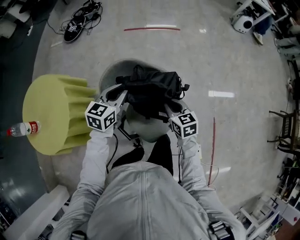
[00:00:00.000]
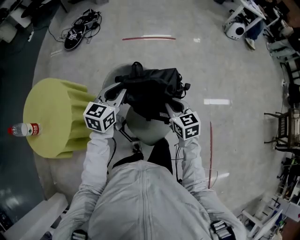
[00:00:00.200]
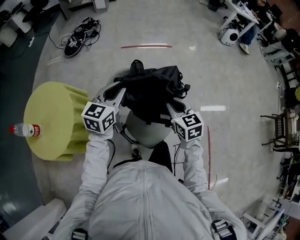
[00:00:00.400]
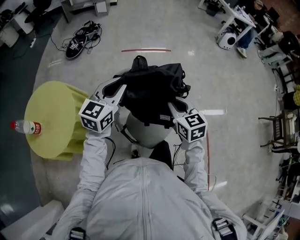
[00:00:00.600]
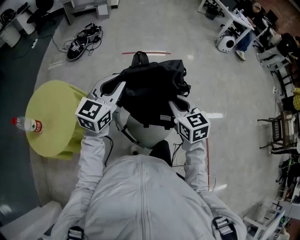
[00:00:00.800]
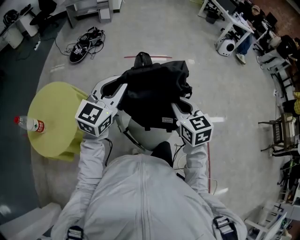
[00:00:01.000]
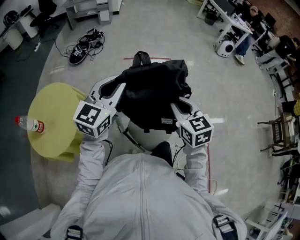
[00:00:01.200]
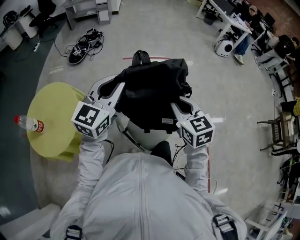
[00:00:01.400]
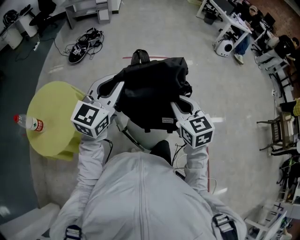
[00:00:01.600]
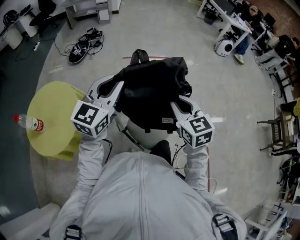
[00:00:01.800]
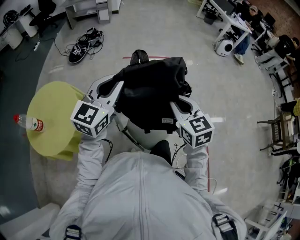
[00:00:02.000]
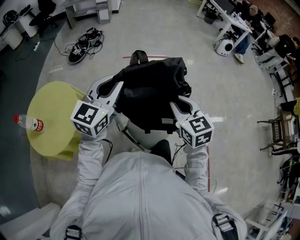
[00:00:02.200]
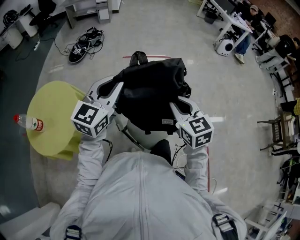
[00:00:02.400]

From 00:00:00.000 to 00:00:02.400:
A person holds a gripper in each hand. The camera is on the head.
From 00:00:00.000 to 00:00:01.200: The two grippers go some 25 cm upward. The left gripper turns by roughly 30 degrees.
From 00:00:01.200 to 00:00:02.400: The grippers move only a little.

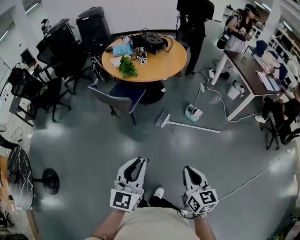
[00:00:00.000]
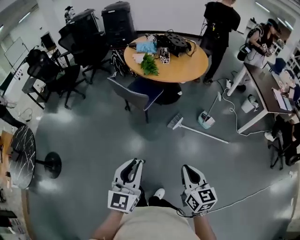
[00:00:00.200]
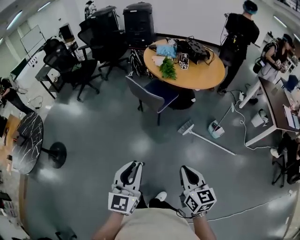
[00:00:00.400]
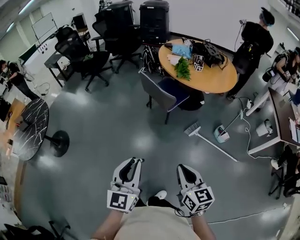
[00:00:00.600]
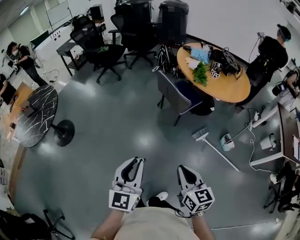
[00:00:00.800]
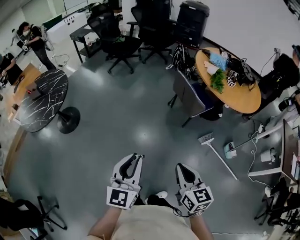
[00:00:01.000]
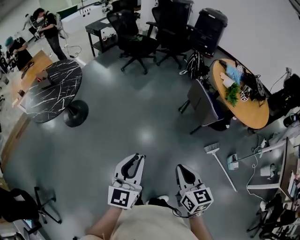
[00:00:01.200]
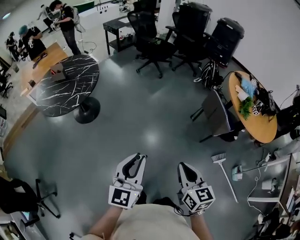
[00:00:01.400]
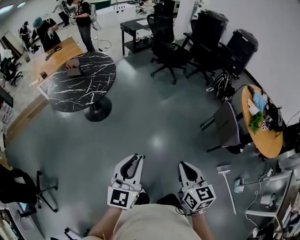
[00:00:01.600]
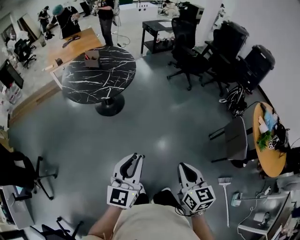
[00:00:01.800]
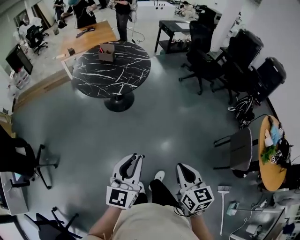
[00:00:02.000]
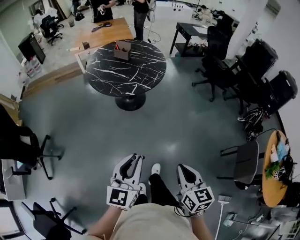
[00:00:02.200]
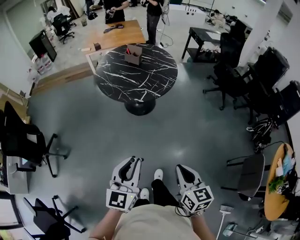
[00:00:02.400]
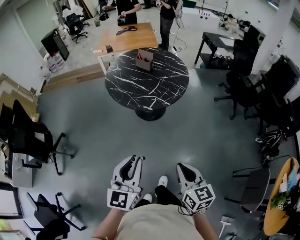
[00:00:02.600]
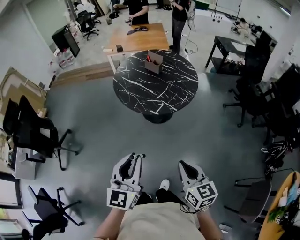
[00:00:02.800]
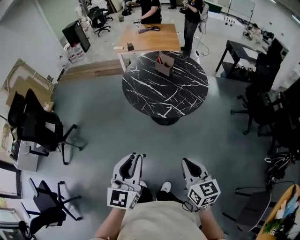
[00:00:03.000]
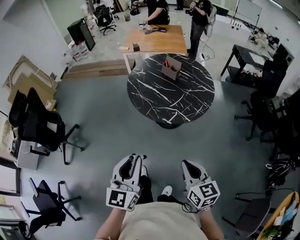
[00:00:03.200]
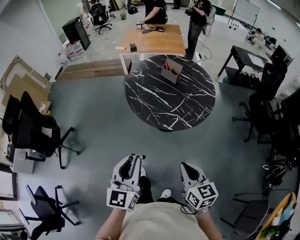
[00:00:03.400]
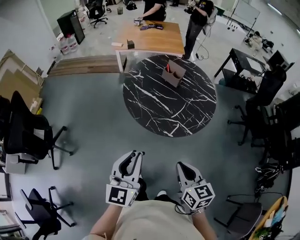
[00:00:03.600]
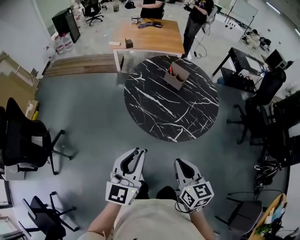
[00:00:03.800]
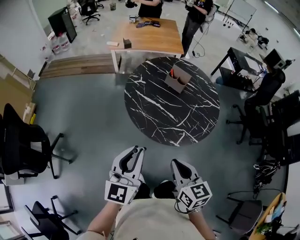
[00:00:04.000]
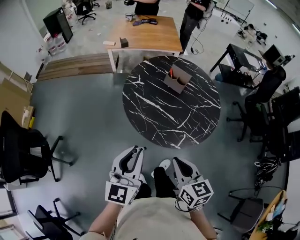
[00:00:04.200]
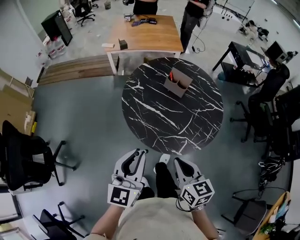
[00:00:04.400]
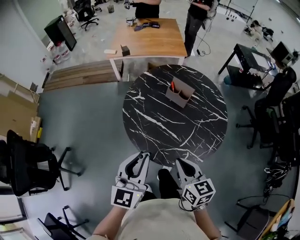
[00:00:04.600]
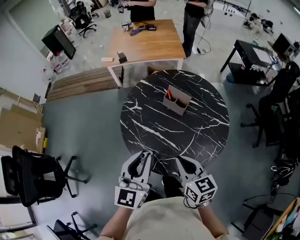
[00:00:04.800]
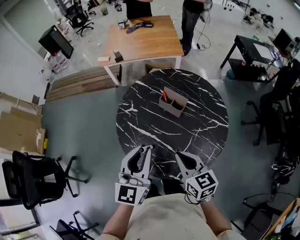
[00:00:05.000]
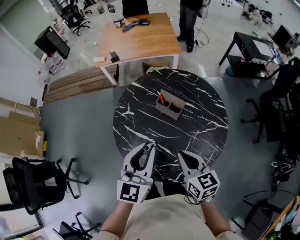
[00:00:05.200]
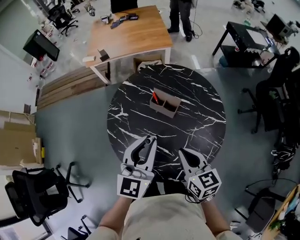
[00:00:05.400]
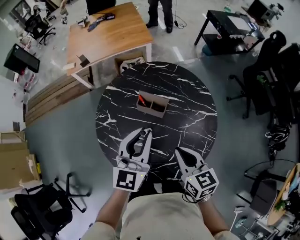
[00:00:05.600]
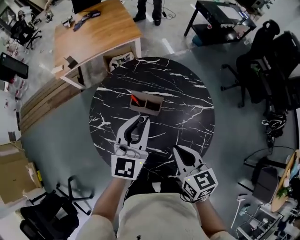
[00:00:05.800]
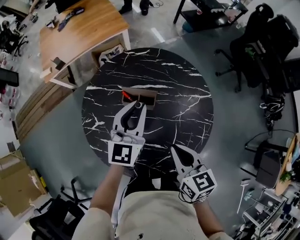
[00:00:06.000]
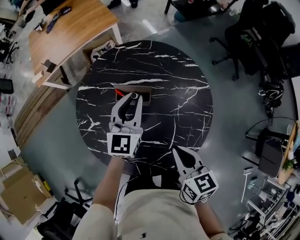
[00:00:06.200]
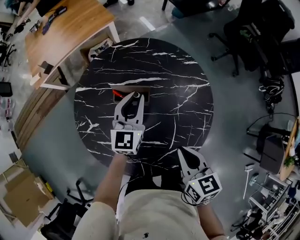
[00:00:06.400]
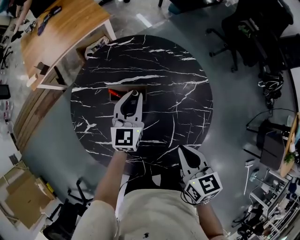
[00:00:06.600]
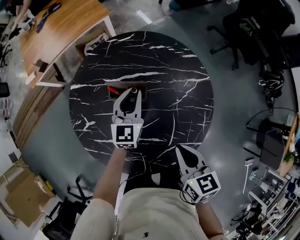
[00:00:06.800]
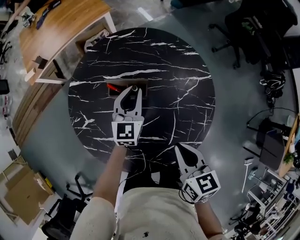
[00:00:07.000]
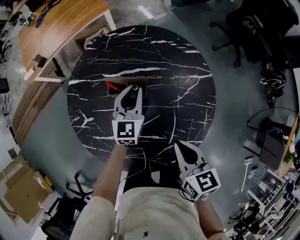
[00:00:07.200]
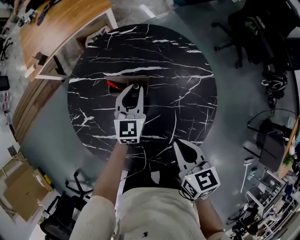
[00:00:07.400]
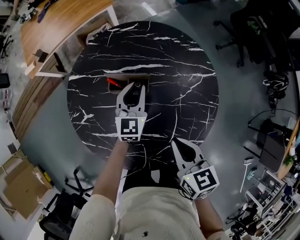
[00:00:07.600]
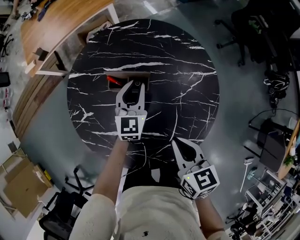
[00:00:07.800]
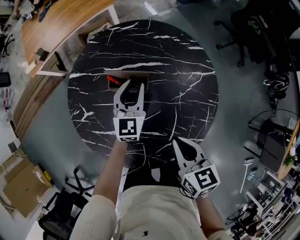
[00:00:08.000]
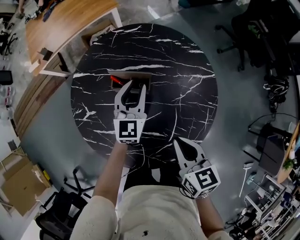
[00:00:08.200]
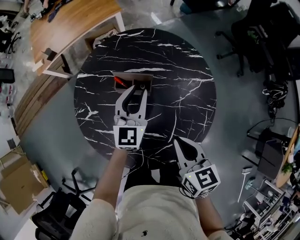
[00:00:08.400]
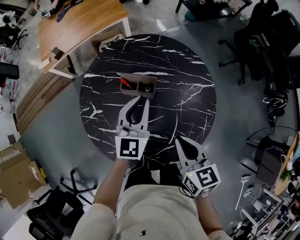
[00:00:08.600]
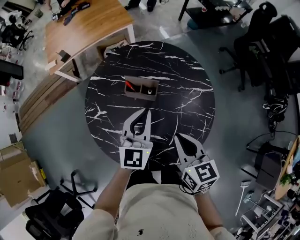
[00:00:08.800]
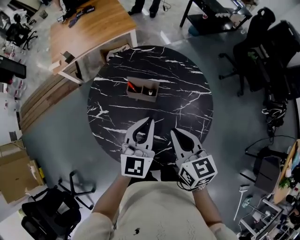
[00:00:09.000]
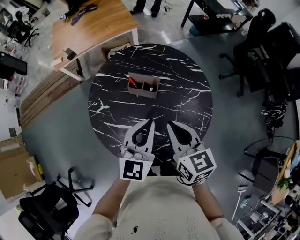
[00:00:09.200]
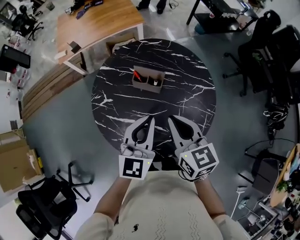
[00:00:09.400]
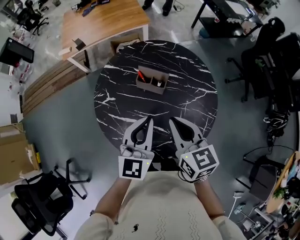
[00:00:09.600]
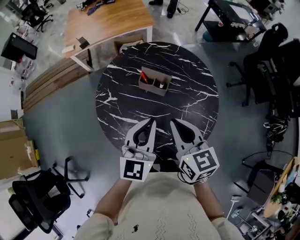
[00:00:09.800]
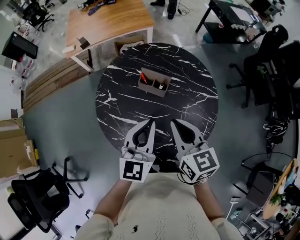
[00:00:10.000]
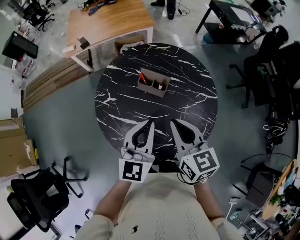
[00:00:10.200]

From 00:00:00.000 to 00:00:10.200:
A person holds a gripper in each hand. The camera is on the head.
From 00:00:00.000 to 00:00:01.400: The two grippers travel together, about 50 cm. The left gripper turns by roughly 50 degrees. Meanwhile the right gripper changes its angle by some 50 degrees.
From 00:00:01.400 to 00:00:03.000: The pair of grippers is taken about 50 cm. The right gripper turns by some 50 degrees; the left gripper swivels roughly 50 degrees.
From 00:00:03.000 to 00:00:04.400: The right gripper is displaced forward and to the left by approximately 40 cm, while the left gripper is displaced forward by some 40 cm.
From 00:00:04.400 to 00:00:05.800: The two grippers go some 40 cm forward and to the right. The left gripper rotates approximately 20 degrees.
From 00:00:05.800 to 00:00:07.200: The right gripper moves downward, roughly 10 cm, while the left gripper goes approximately 20 cm downward and forward.
From 00:00:07.200 to 00:00:08.800: The left gripper goes about 20 cm upward and backward. Meanwhile the right gripper travels upward by roughly 5 cm.
From 00:00:08.800 to 00:00:10.200: The right gripper heads upward, covering some 5 cm. The left gripper moves backward and upward, some 10 cm.

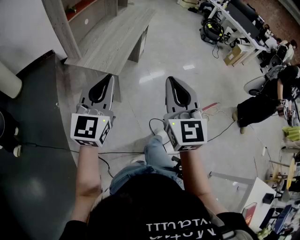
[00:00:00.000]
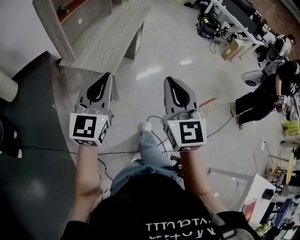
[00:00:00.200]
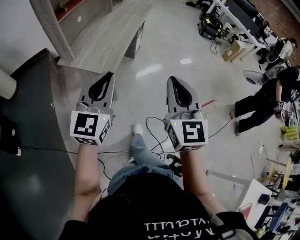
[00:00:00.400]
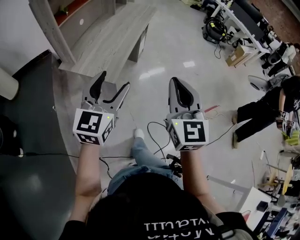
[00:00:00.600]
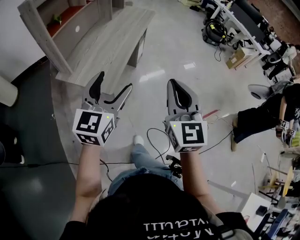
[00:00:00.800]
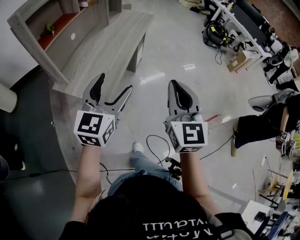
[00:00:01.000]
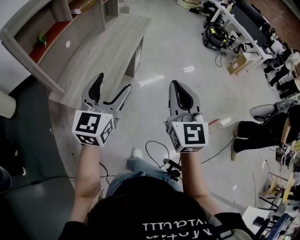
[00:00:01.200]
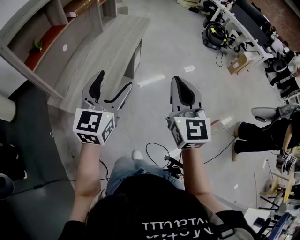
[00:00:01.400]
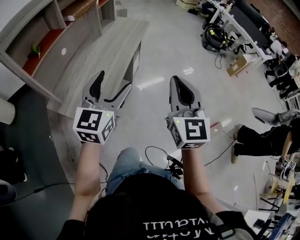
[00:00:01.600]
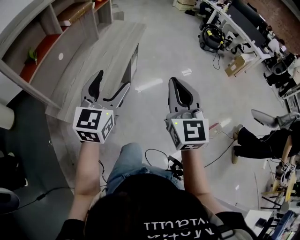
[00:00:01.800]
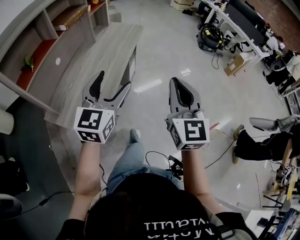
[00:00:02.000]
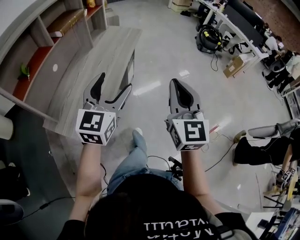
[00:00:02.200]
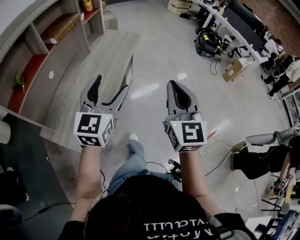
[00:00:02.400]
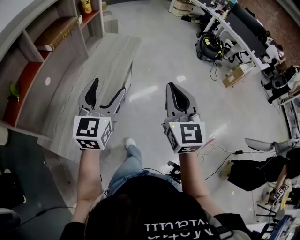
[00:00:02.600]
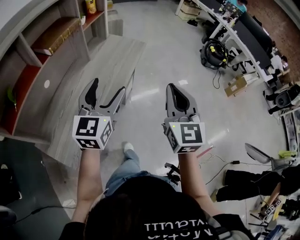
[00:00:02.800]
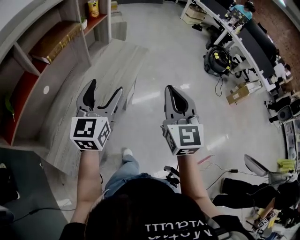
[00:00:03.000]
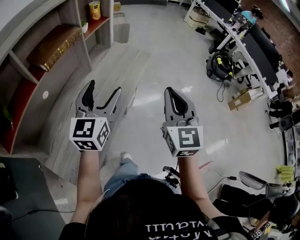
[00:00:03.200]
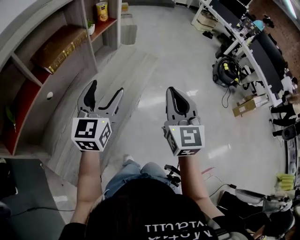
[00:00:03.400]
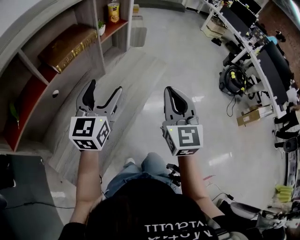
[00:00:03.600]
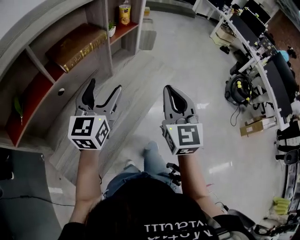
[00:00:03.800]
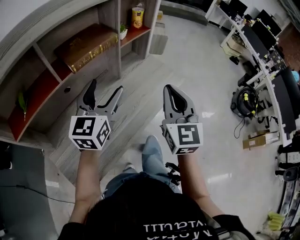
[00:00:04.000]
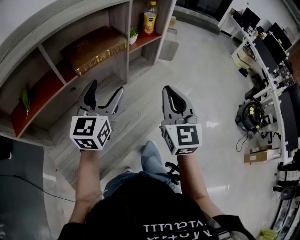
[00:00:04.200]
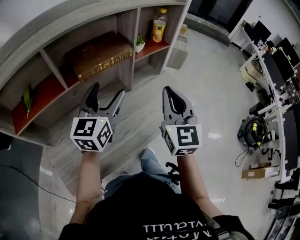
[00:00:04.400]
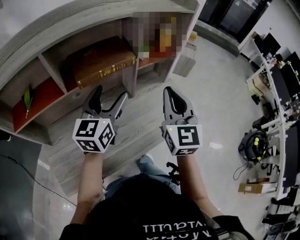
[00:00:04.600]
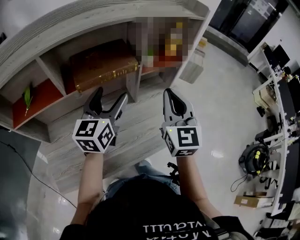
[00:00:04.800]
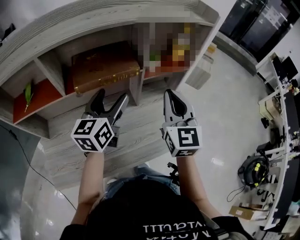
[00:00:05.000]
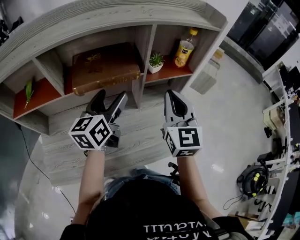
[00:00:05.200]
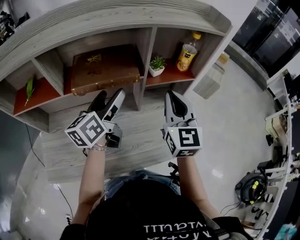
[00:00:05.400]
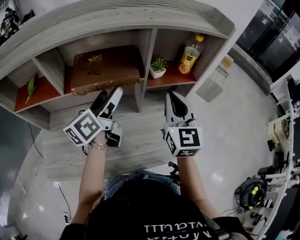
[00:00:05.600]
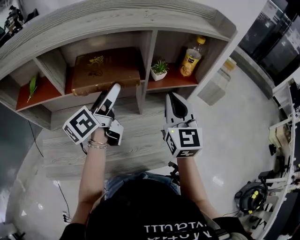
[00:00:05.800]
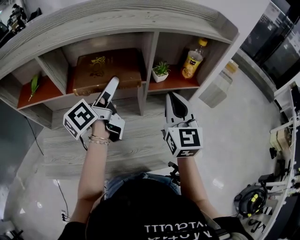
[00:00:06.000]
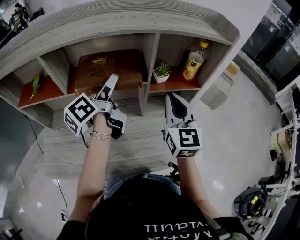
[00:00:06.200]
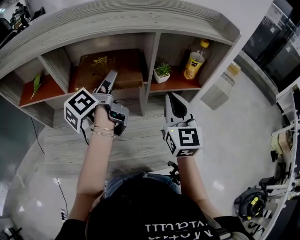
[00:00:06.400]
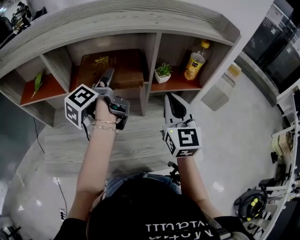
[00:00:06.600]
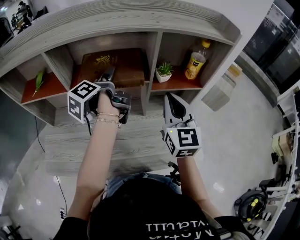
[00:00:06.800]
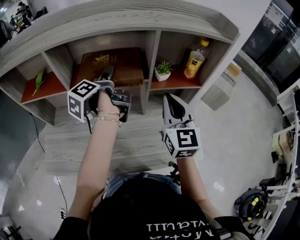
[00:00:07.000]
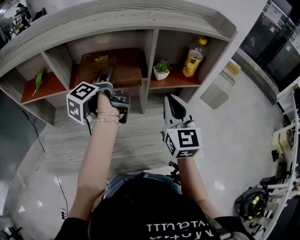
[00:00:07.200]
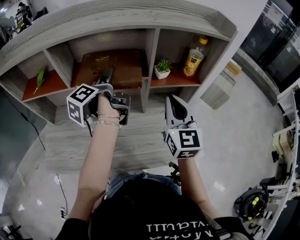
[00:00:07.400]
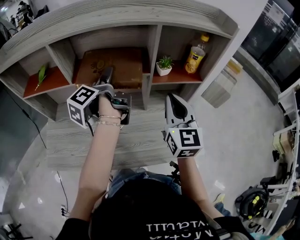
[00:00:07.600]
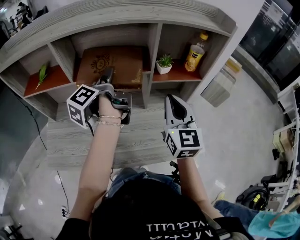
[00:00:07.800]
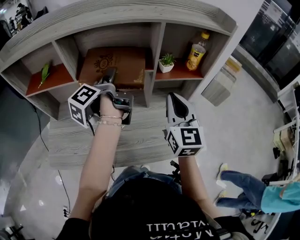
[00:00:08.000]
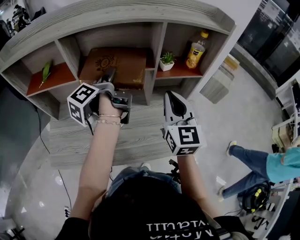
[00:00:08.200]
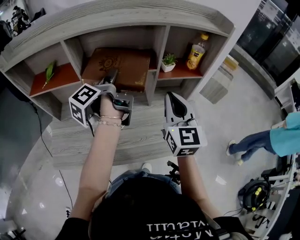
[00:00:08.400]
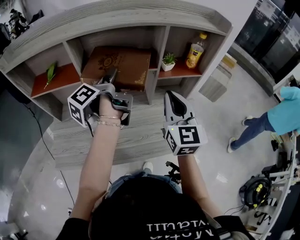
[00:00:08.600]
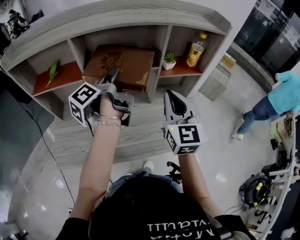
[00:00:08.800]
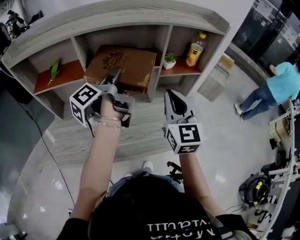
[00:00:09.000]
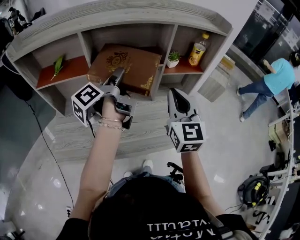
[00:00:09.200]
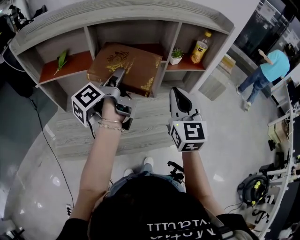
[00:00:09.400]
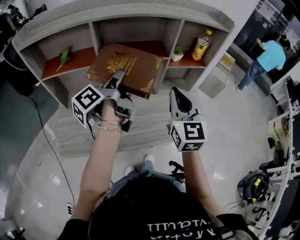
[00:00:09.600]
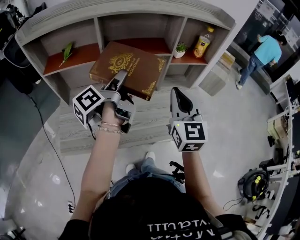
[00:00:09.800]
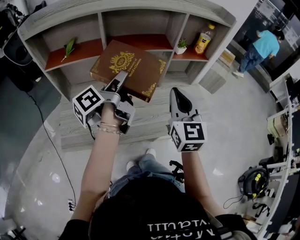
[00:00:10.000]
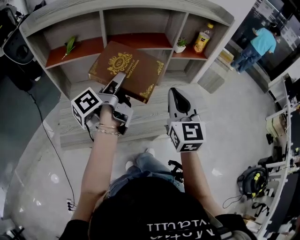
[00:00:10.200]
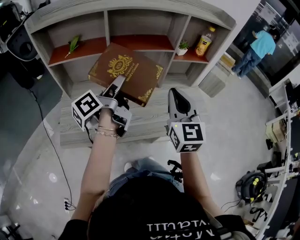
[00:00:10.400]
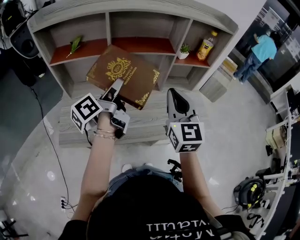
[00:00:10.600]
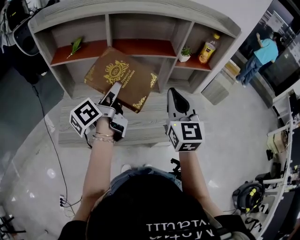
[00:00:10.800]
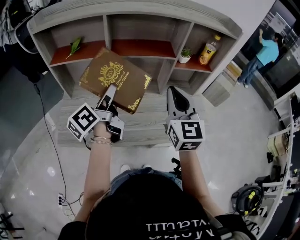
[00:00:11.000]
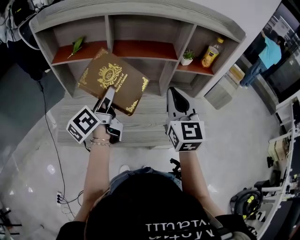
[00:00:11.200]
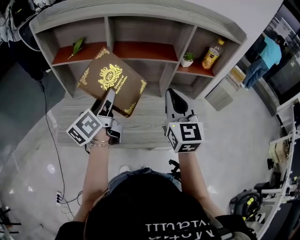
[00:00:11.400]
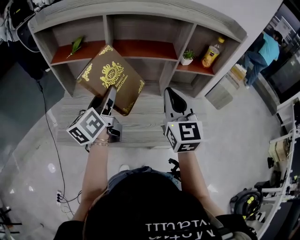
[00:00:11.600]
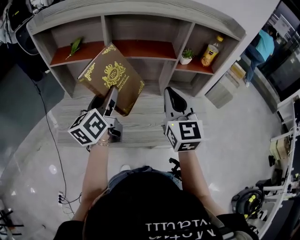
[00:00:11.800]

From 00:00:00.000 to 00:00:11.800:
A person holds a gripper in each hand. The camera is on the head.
From 00:00:00.000 to 00:00:01.400: Both grippers move forward, about 35 cm. The left gripper opens.
From 00:00:01.400 to 00:00:03.000: The grippers both shift forward by some 35 cm.
From 00:00:03.000 to 00:00:04.400: The left gripper shifts by about 20 cm, and changes its angle by some 30 degrees. Meanwhile the right gripper changes place by about 30 cm, and swivels some 30 degrees.
From 00:00:04.400 to 00:00:06.000: The right gripper changes place by some 20 cm, and swivels some 30 degrees. The left gripper changes place by about 15 cm, and twists roughly 50 degrees counterclockwise, seen from behind.
From 00:00:06.000 to 00:00:07.400: The left gripper turns by some 30 degrees.
From 00:00:07.400 to 00:00:08.800: The right gripper is displaced to the left and backward by some 10 cm, while the left gripper is displaced backward by roughly 5 cm, and closes.
From 00:00:08.800 to 00:00:10.400: The left gripper travels backward by some 10 cm; the right gripper goes roughly 10 cm backward and to the left.
From 00:00:10.400 to 00:00:11.800: The left gripper rotates around the line of its fingers by some 40 degrees, clockwise from behind.
